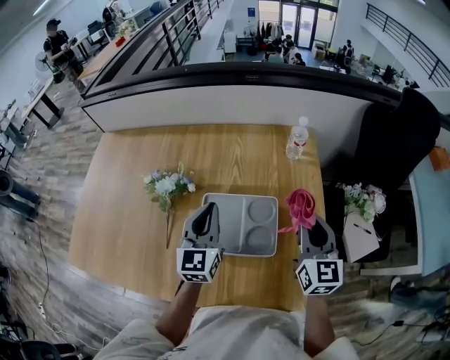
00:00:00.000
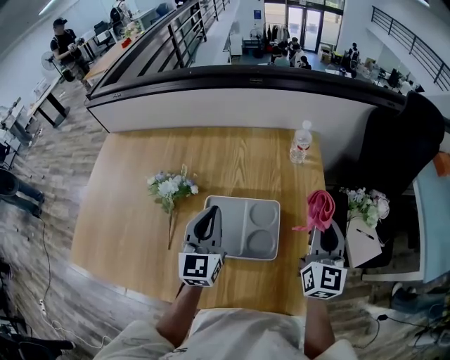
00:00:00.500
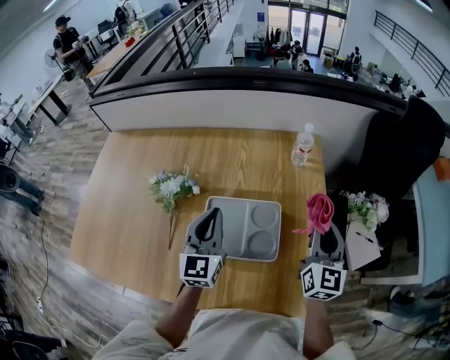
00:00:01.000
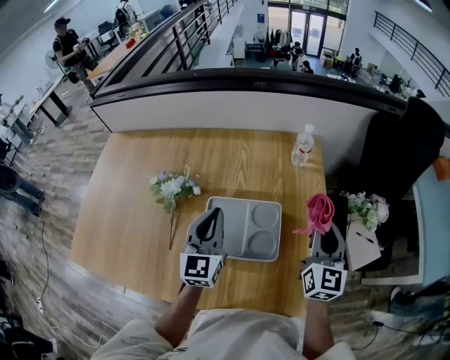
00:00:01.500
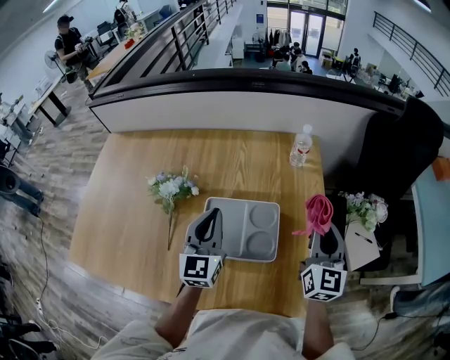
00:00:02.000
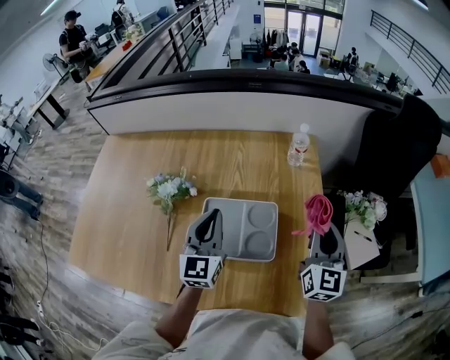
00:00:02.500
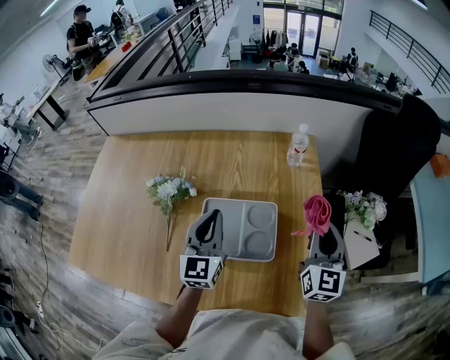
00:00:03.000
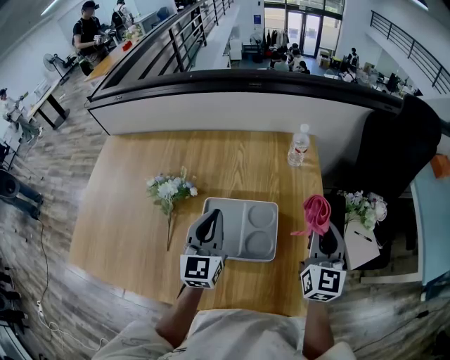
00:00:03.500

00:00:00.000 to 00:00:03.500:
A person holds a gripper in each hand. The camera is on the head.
00:00:00.000 to 00:00:02.000: The grippers stay close to where they were, moving slightly.
00:00:02.000 to 00:00:03.500: The two grippers keep their place.

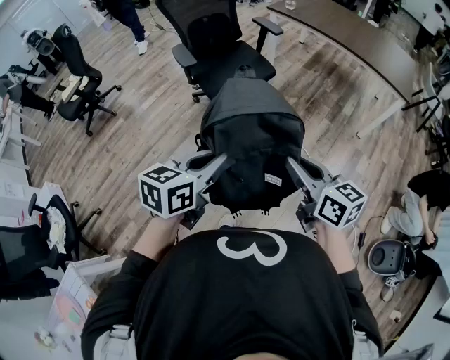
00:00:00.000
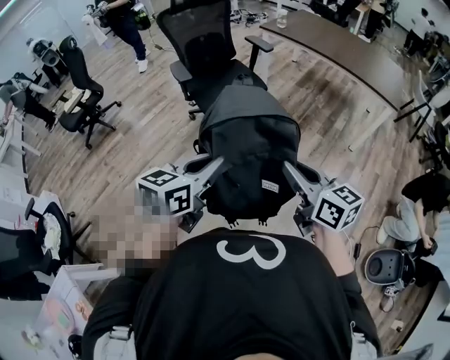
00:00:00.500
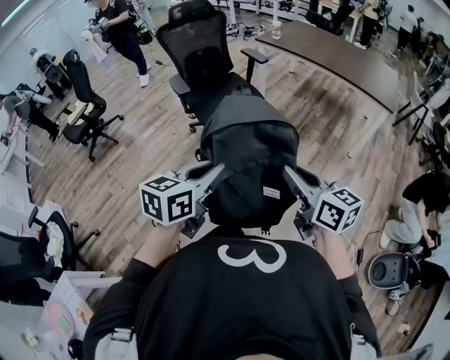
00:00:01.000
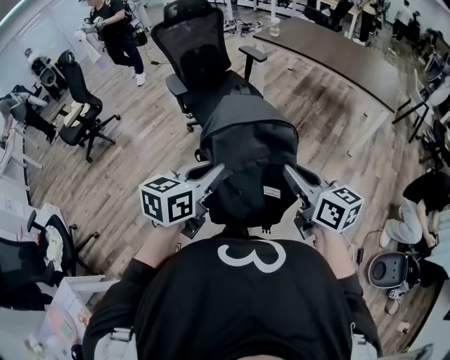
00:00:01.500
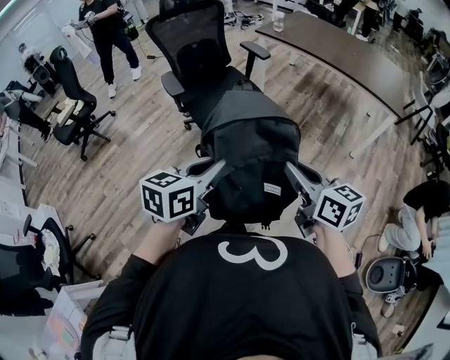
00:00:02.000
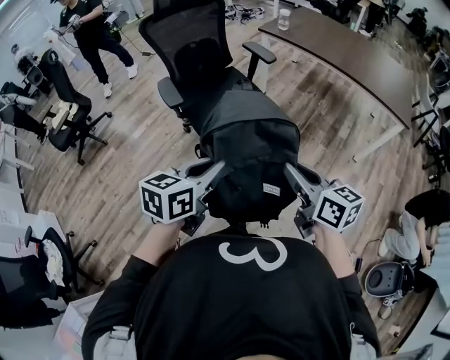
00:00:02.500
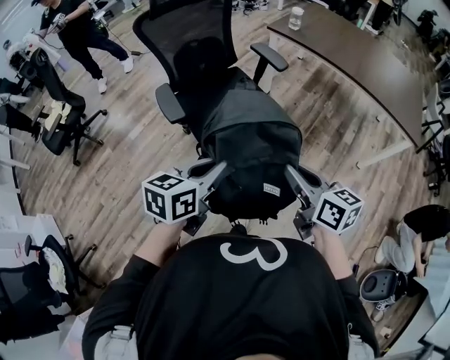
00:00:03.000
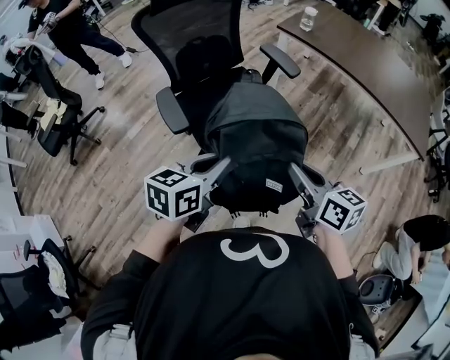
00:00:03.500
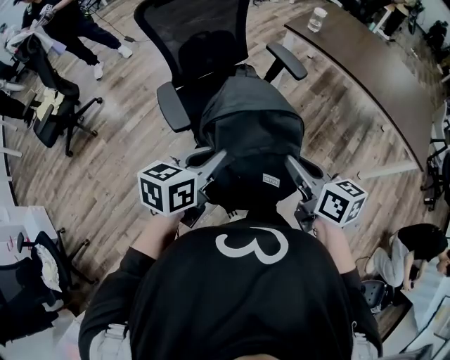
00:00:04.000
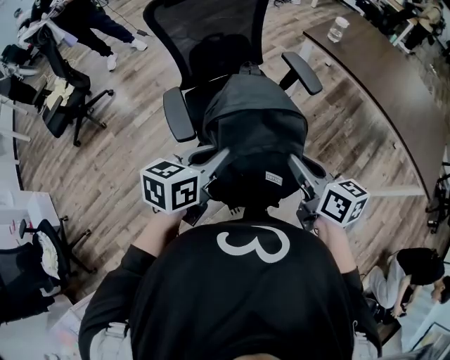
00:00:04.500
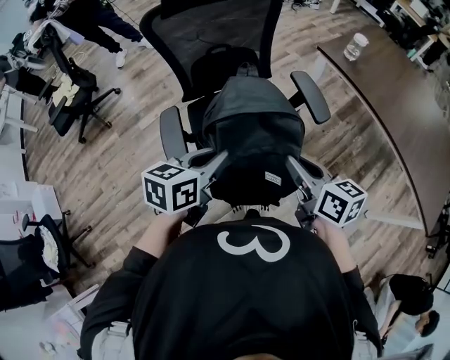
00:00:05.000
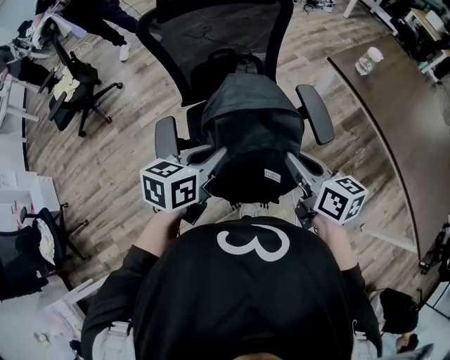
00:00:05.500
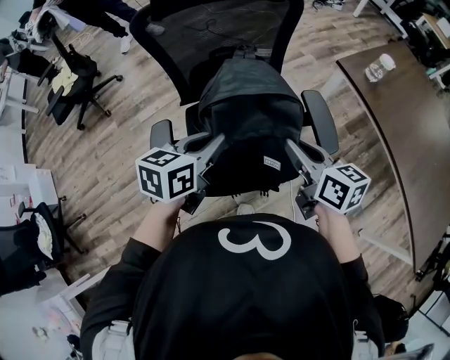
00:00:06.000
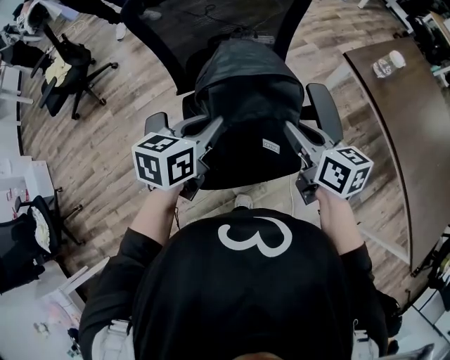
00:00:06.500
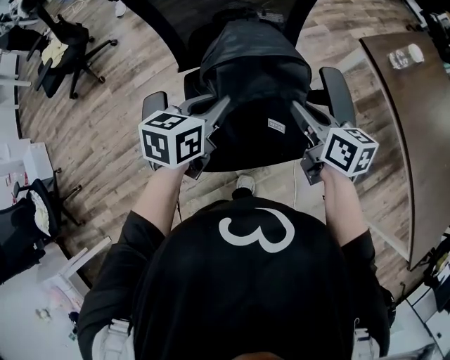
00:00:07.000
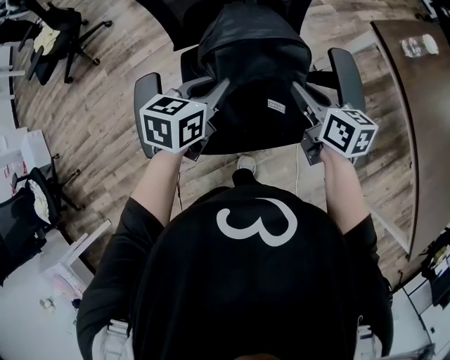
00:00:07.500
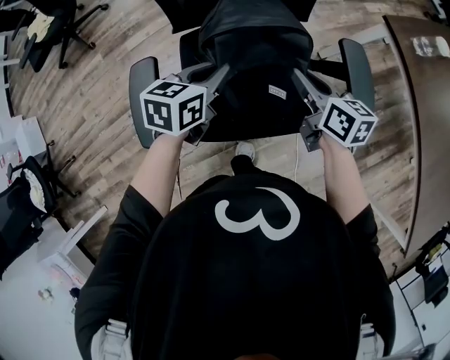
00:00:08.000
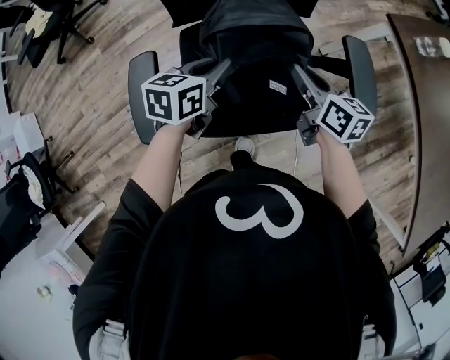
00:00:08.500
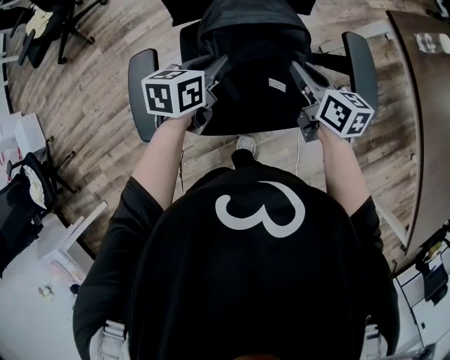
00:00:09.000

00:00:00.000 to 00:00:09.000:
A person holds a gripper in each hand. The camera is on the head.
00:00:00.000 to 00:00:02.000: Both grippers travel together forward, roughly 5 cm.
00:00:02.000 to 00:00:04.500: The two grippers travel together, forward, approximately 40 cm.
00:00:04.500 to 00:00:07.000: Both grippers move forward, approximately 35 cm.
00:00:07.000 to 00:00:09.000: The two grippers go some 10 cm downward.

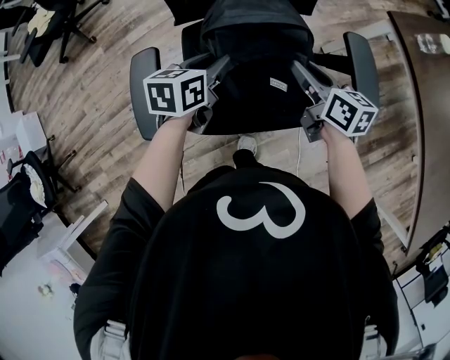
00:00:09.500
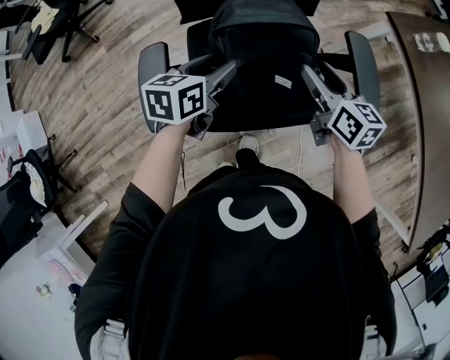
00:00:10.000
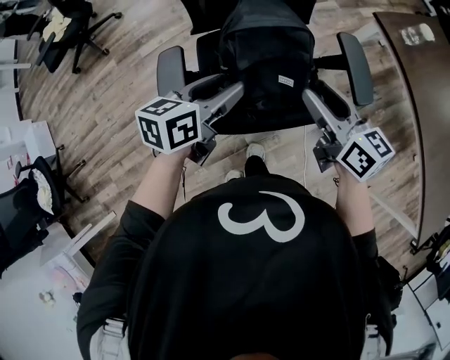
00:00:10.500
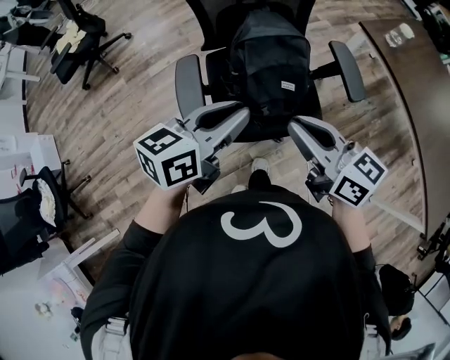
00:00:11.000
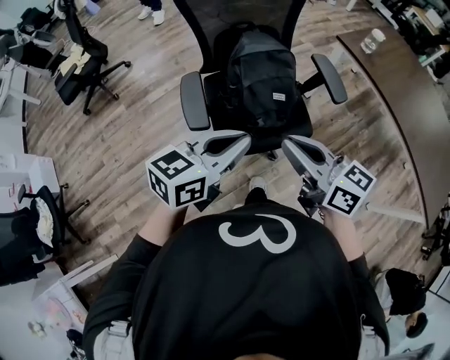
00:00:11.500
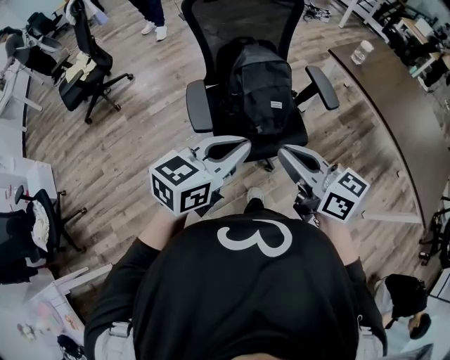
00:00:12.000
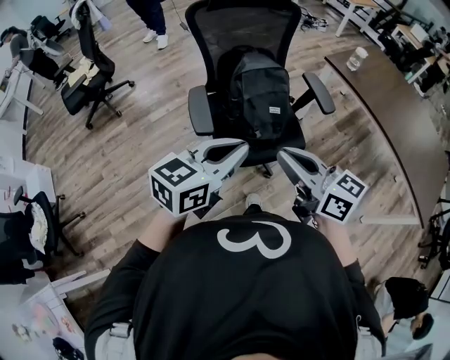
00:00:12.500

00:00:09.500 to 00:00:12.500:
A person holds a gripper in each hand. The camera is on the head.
00:00:09.500 to 00:00:11.000: The right gripper heads backward and upward, covering about 30 cm, swivels roughly 20 degrees, and opens and closes again; the left gripper is displaced upward and backward by approximately 30 cm, turns by roughly 30 degrees, and opens, then closes again.
00:00:11.000 to 00:00:12.500: Both grippers travel together backward and upward, approximately 20 cm.

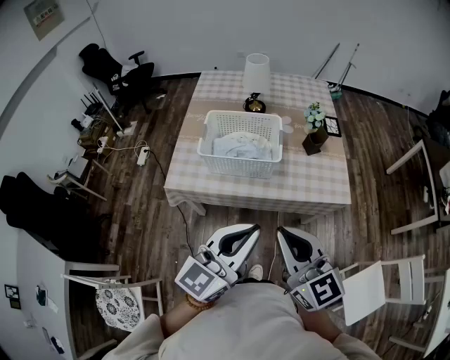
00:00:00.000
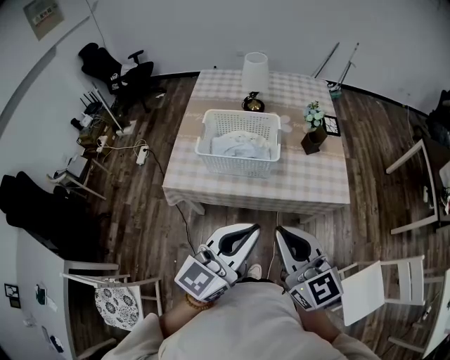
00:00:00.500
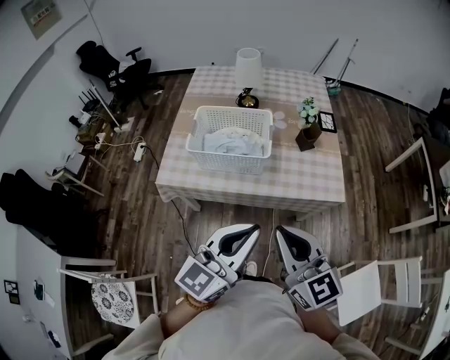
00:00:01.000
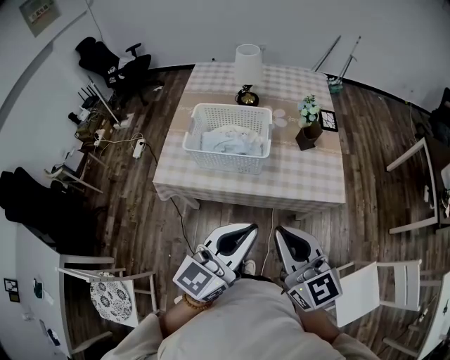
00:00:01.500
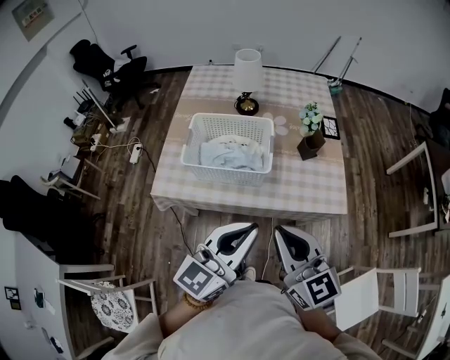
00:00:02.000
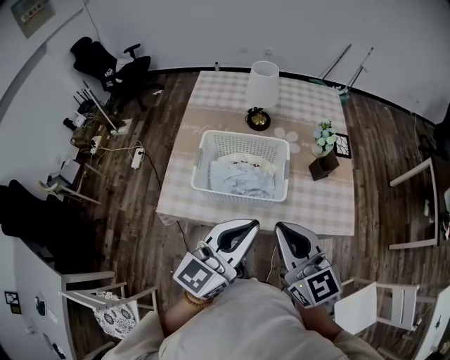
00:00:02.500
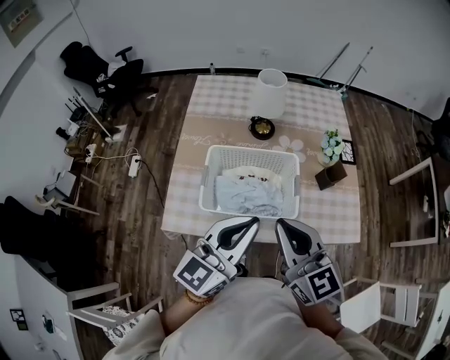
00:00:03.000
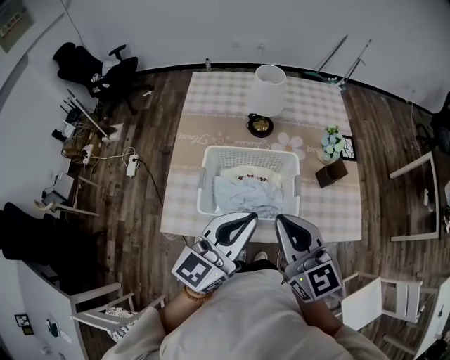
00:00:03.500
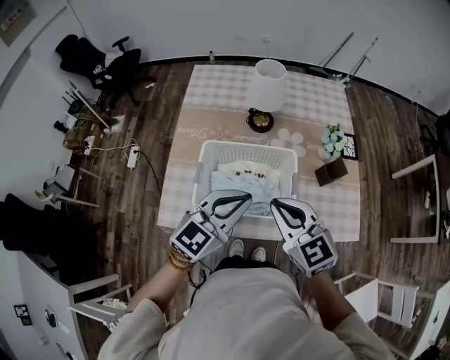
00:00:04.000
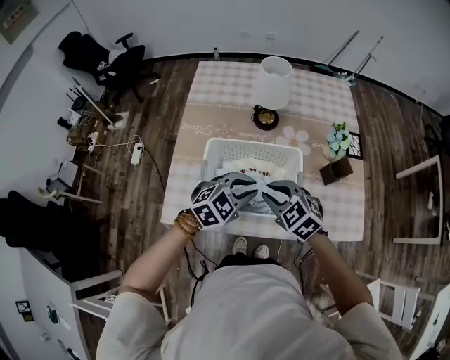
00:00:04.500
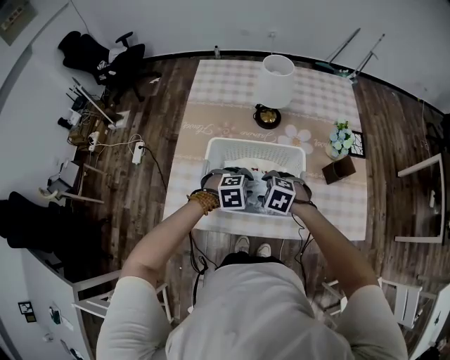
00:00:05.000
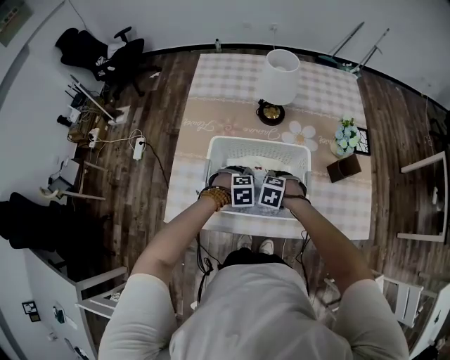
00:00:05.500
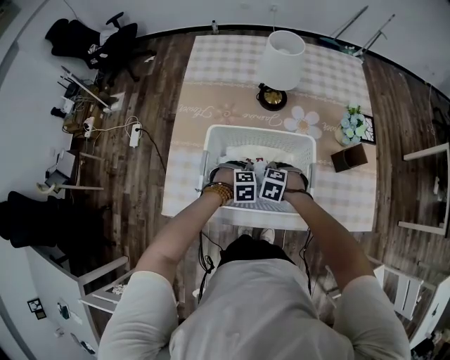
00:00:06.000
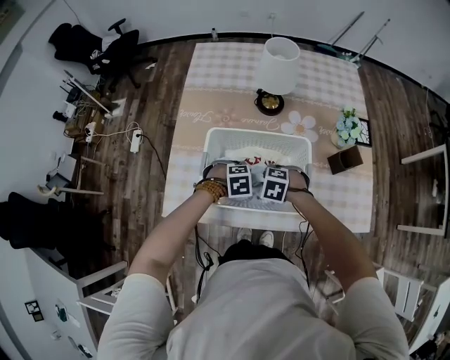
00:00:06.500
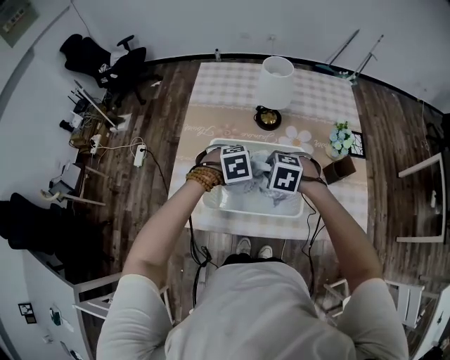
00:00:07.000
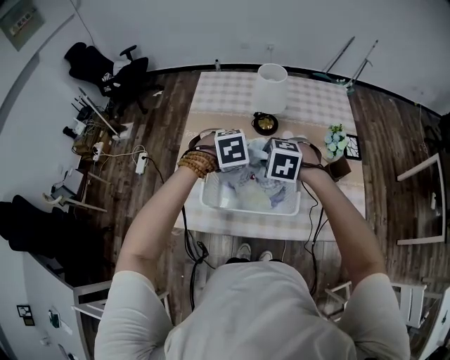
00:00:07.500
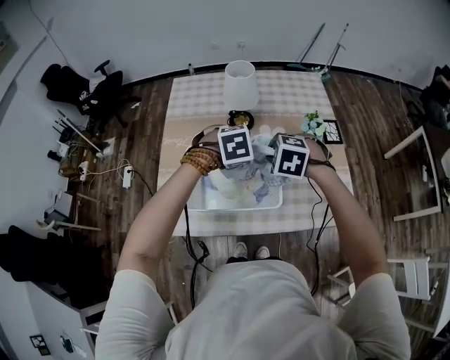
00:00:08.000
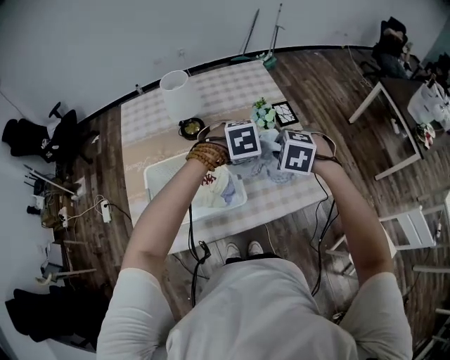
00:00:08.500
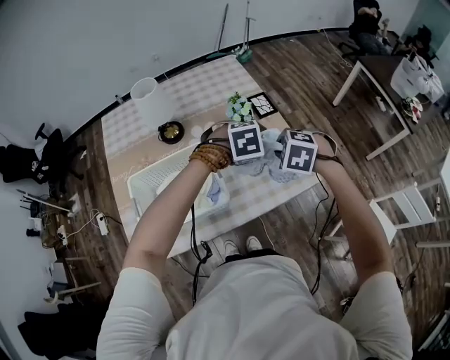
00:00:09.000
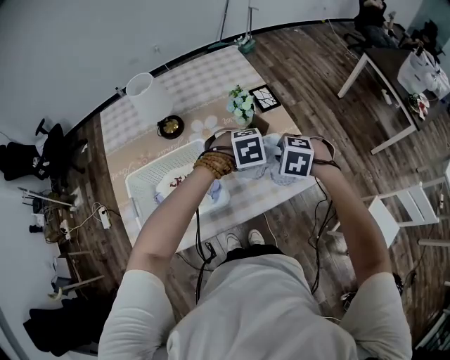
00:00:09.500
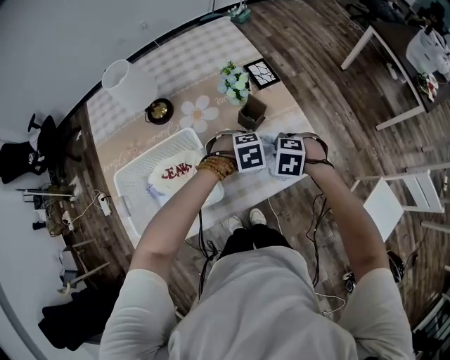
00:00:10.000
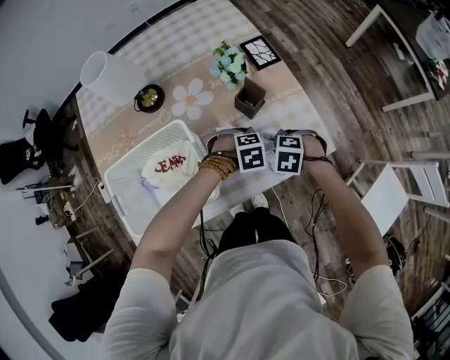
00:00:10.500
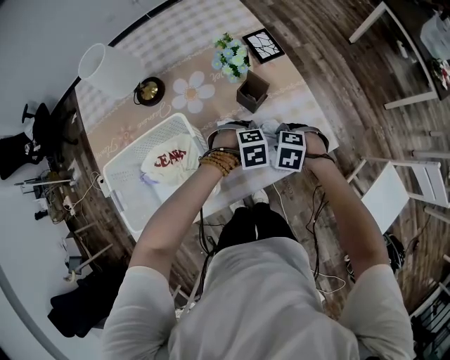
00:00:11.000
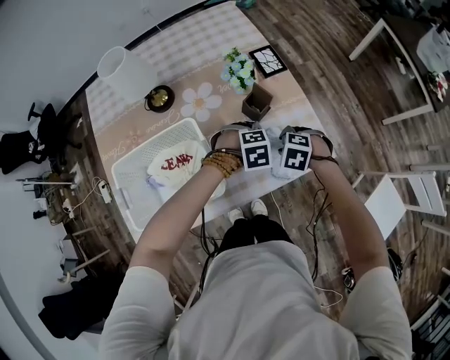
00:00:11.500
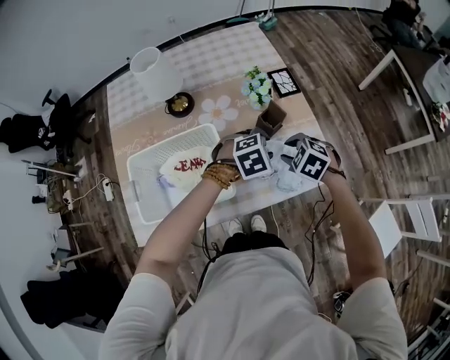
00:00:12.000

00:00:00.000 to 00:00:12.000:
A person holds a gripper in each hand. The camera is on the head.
00:00:00.000 to 00:00:02.000: Both grippers move forward, about 10 cm.
00:00:02.000 to 00:00:04.000: Both grippers travel together forward and to the left, some 25 cm. The left gripper changes its angle by about 20 degrees.
00:00:04.000 to 00:00:06.000: Both grippers travel together downward, approximately 35 cm. The right gripper angles its fingers downward, by about 60 degrees, and opens up, while the left gripper points its fingers approximately 70 degrees further downward, and opens.
00:00:06.000 to 00:00:08.000: Both grippers move upward, about 30 cm. The right gripper closes up.
00:00:08.000 to 00:00:10.000: The right gripper changes place by some 30 cm, and swivels approximately 20 degrees. The left gripper changes place by roughly 30 cm, and rotates some 20 degrees.
00:00:10.000 to 00:00:12.000: The right gripper goes downward and returns, some 10 cm each way, while the left gripper moves upward, some 5 cm.
